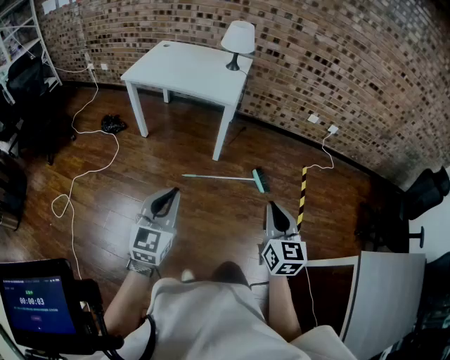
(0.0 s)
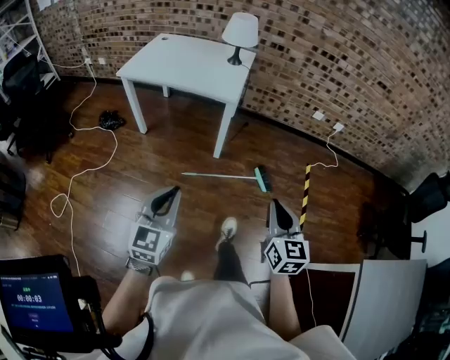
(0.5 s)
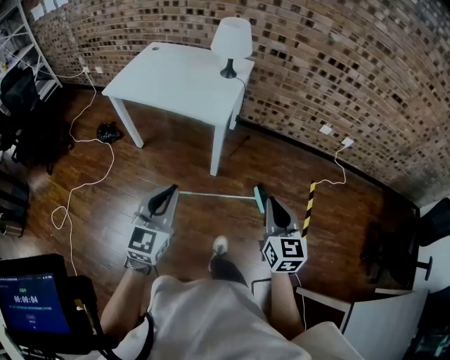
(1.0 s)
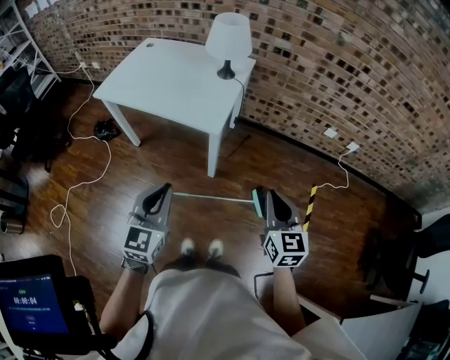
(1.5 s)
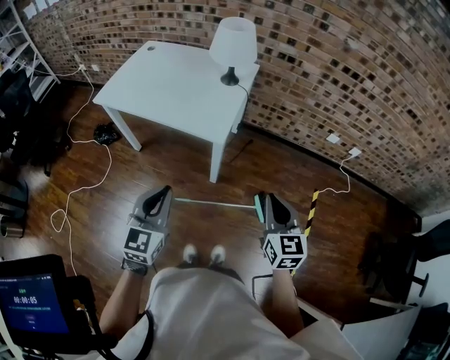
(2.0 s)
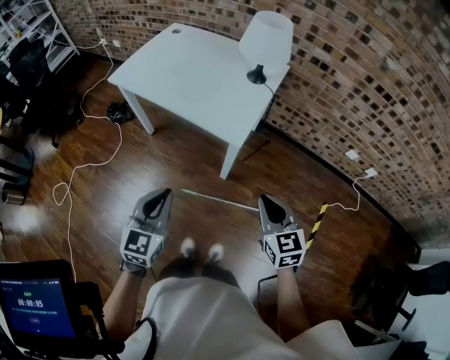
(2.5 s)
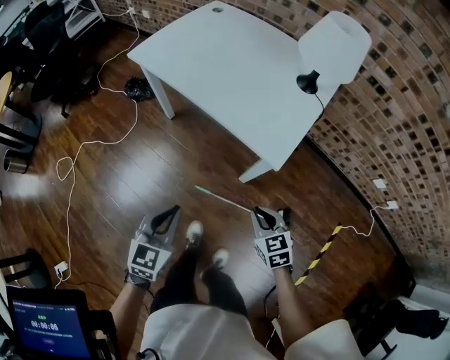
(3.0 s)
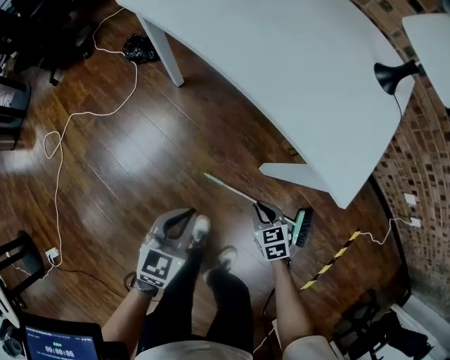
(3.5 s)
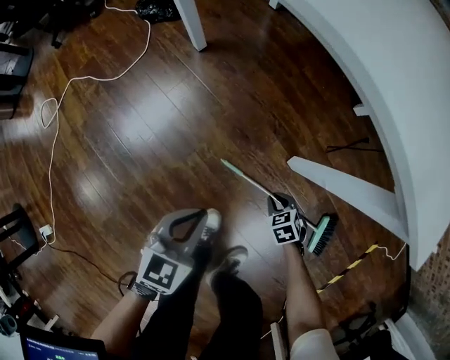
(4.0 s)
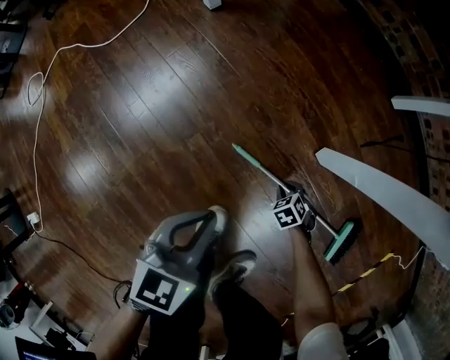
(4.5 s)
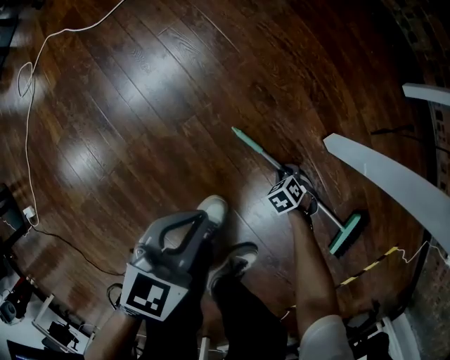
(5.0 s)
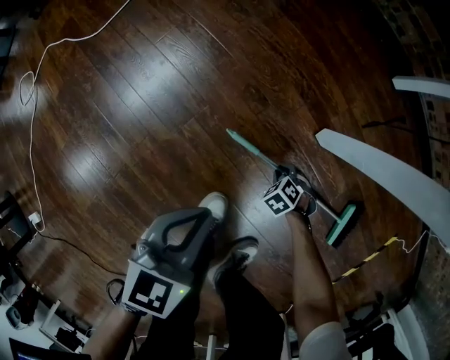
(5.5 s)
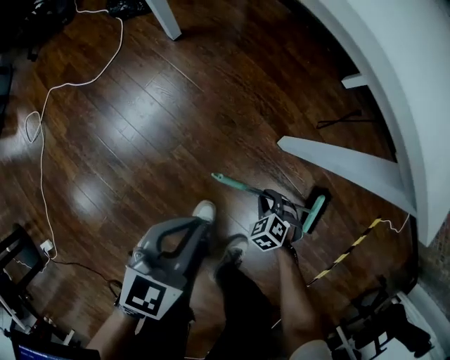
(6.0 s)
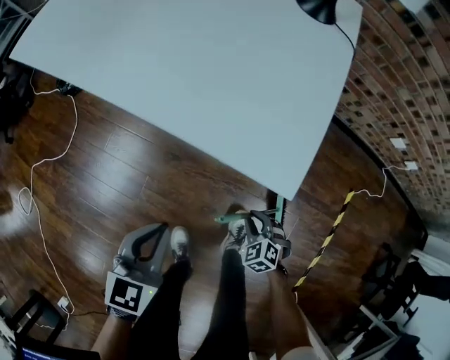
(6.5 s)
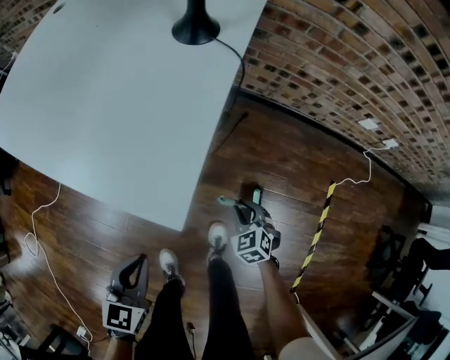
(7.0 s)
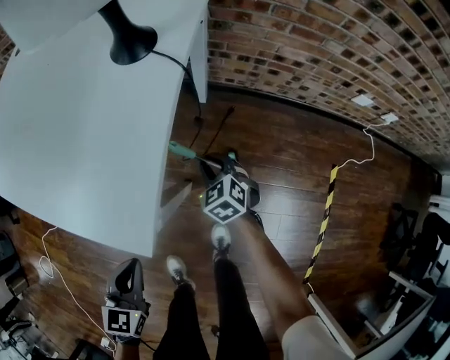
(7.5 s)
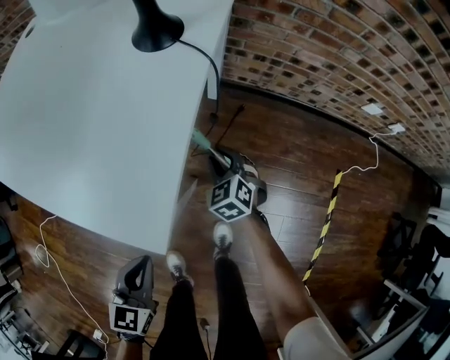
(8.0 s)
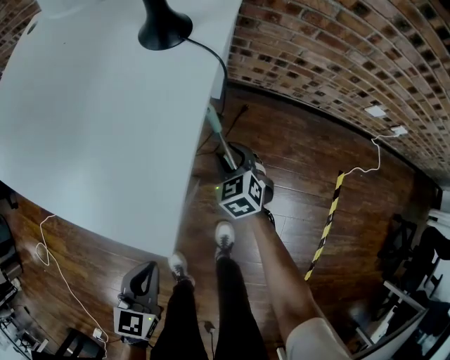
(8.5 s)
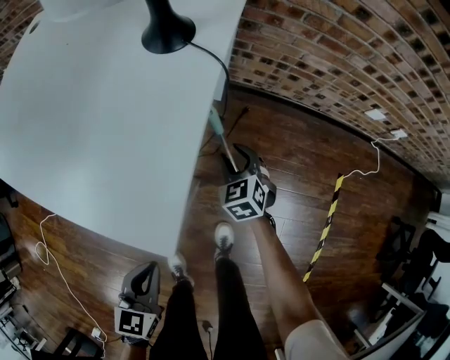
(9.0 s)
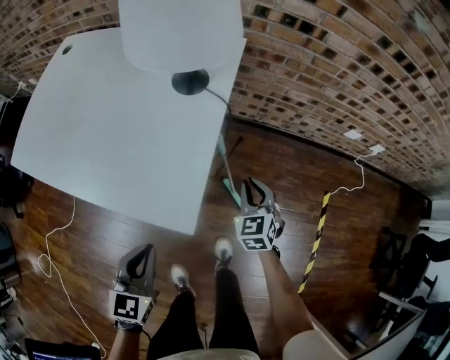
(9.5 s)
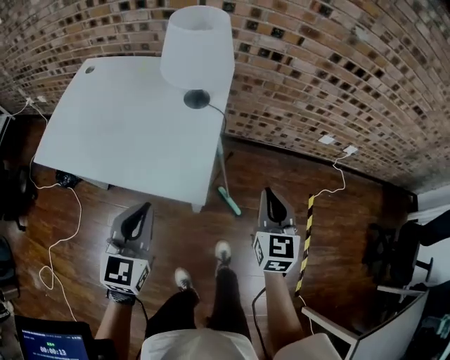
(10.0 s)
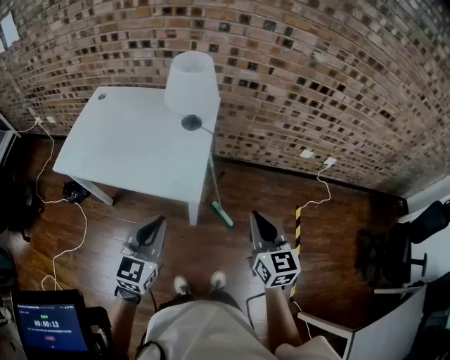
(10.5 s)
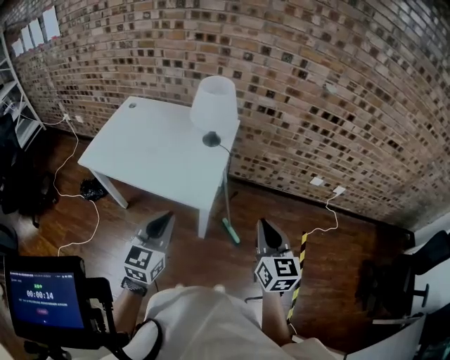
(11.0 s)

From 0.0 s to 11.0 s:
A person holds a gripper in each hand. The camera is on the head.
From 0.0 s to 2.0 s: The grippers both shift forward by some 40 cm.
From 2.0 s to 3.5 s: Both grippers travel together downward, roughly 40 cm. The left gripper turns by approximately 30 degrees. Meanwhile the right gripper tips its fingers downward by approximately 40 degrees.
From 3.5 s to 5.5 s: The left gripper goes some 25 cm downward, while the right gripper is displaced downward by about 40 cm, and tips its fingers downward by about 30 degrees.
From 5.5 s to 7.5 s: The left gripper shifts roughly 30 cm upward, while the right gripper heads upward, covering about 50 cm, and tips its fingers upward by approximately 40 degrees.
From 7.5 s to 9.0 s: The grippers stay close to where they were, moving slightly.
From 9.0 s to 11.0 s: The left gripper goes some 40 cm upward, and swivels some 30 degrees. The right gripper heads upward and backward, covering roughly 60 cm, points its fingers some 30 degrees further upward, and closes up.

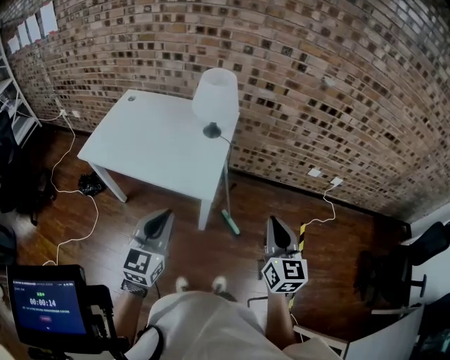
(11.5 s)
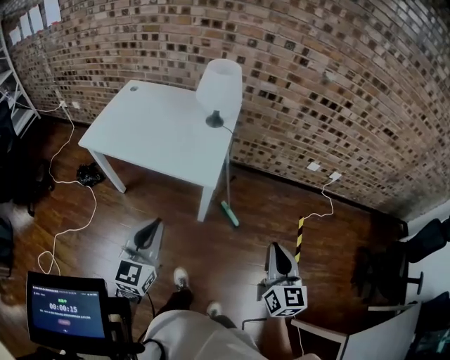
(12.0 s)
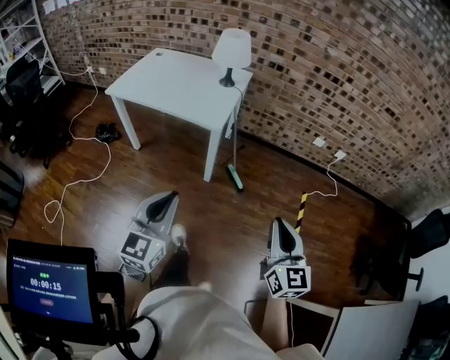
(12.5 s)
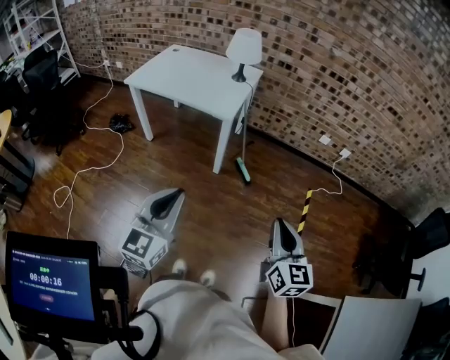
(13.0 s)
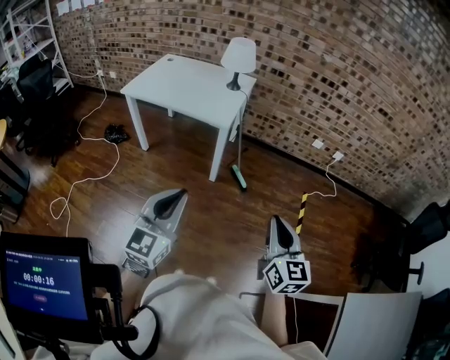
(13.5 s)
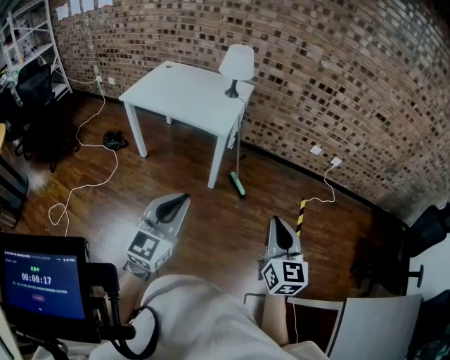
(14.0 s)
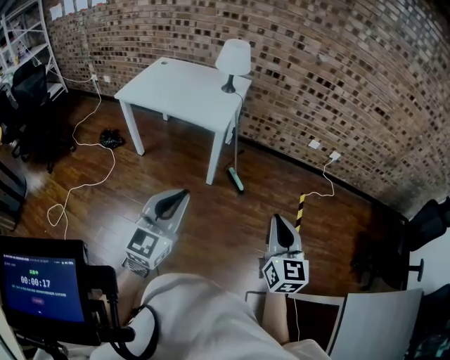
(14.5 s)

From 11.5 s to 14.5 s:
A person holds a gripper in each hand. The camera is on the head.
From 11.5 s to 13.0 s: Both grippers are carried backward, roughly 40 cm.
From 13.0 s to 14.5 s: The grippers make only small movements.

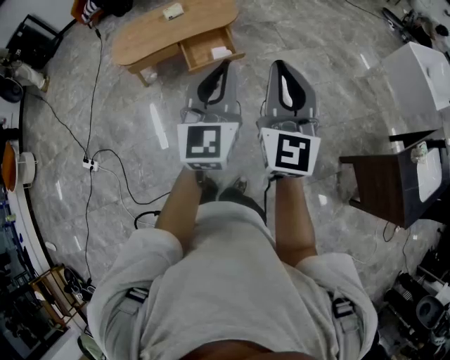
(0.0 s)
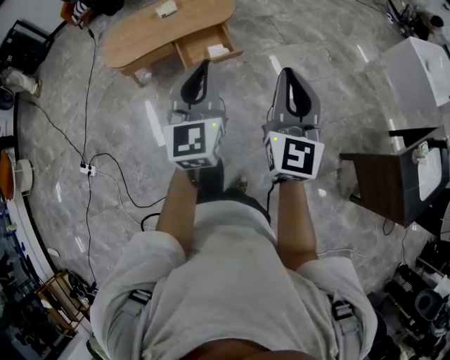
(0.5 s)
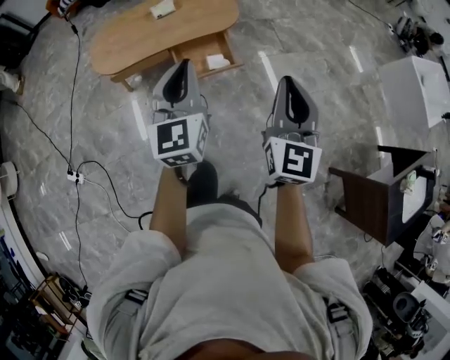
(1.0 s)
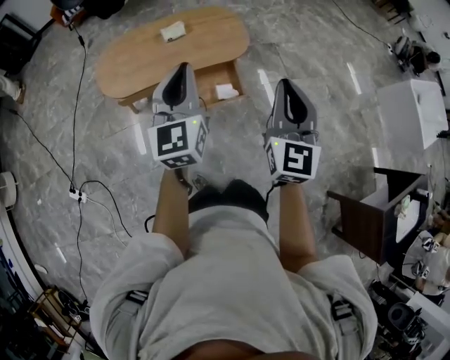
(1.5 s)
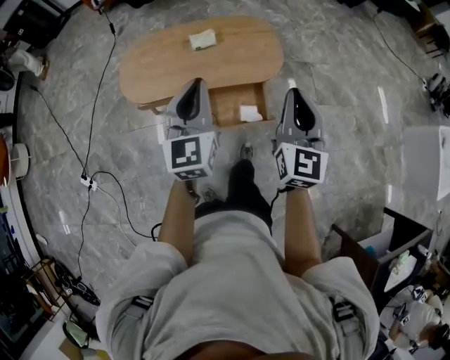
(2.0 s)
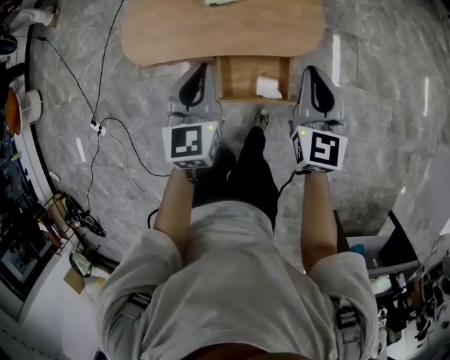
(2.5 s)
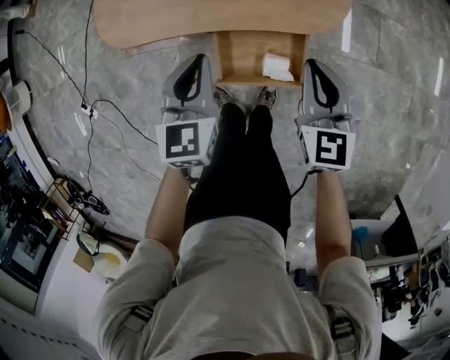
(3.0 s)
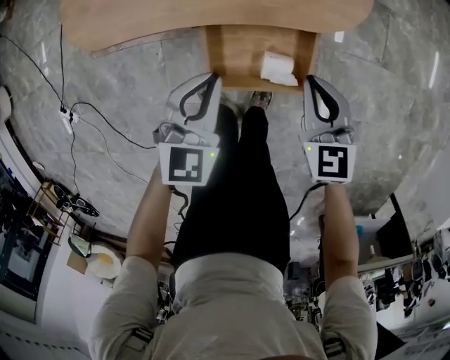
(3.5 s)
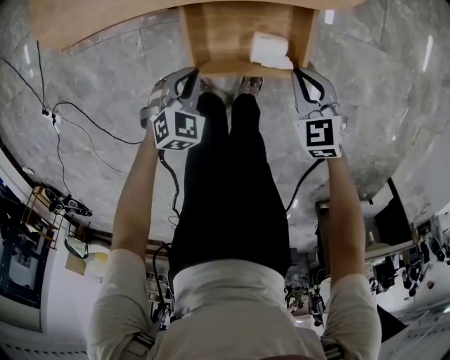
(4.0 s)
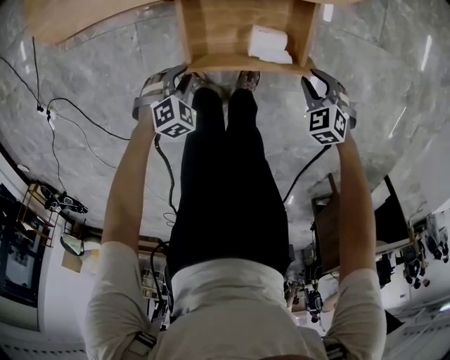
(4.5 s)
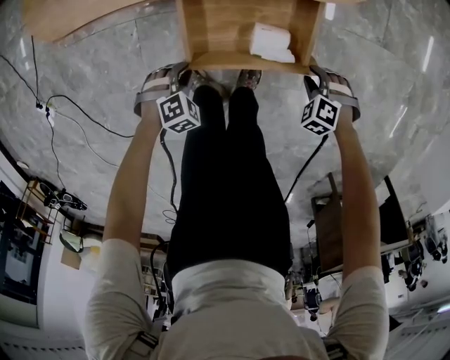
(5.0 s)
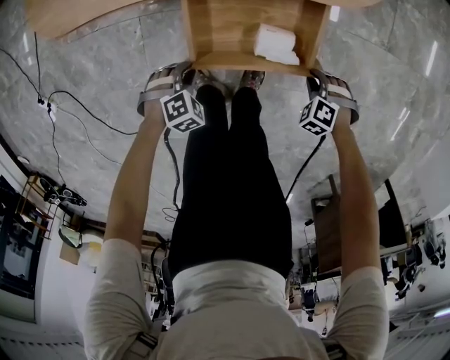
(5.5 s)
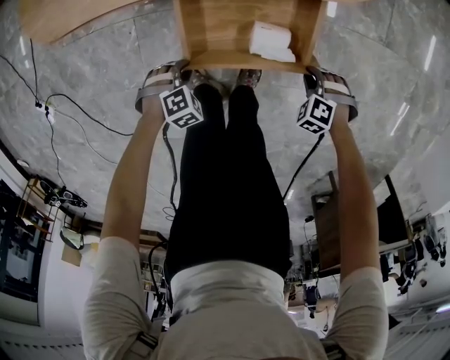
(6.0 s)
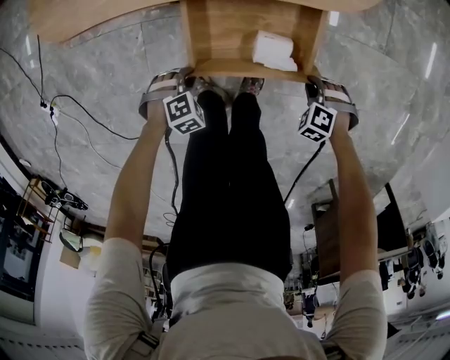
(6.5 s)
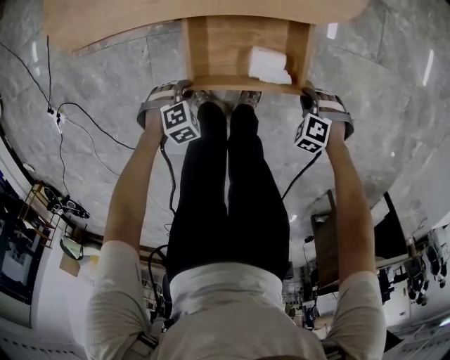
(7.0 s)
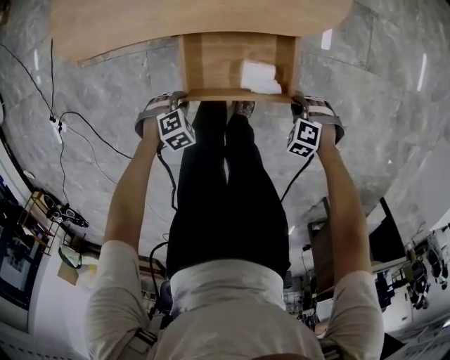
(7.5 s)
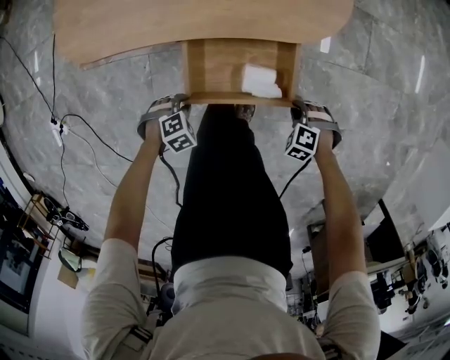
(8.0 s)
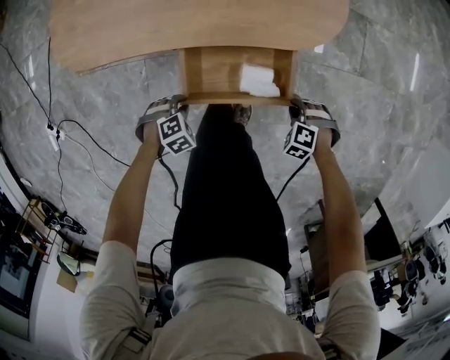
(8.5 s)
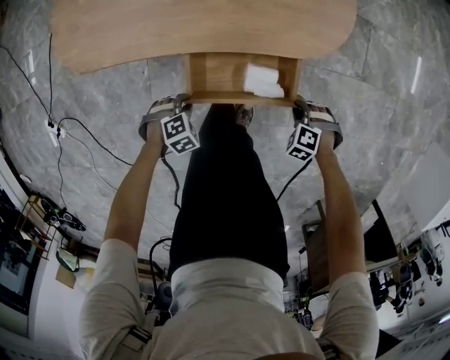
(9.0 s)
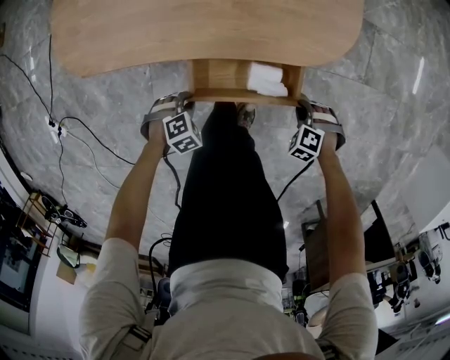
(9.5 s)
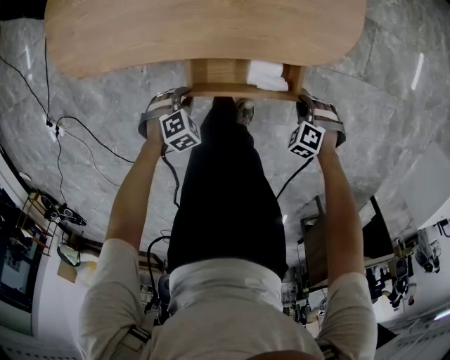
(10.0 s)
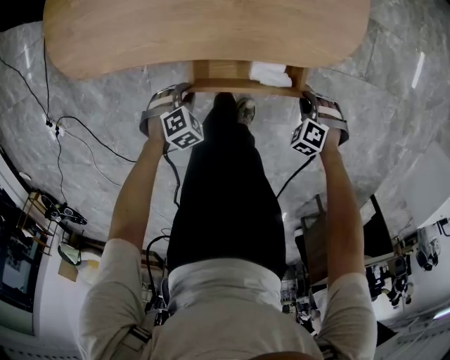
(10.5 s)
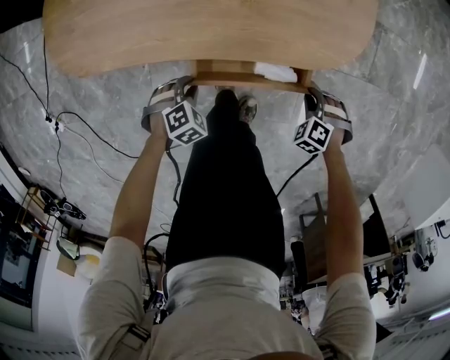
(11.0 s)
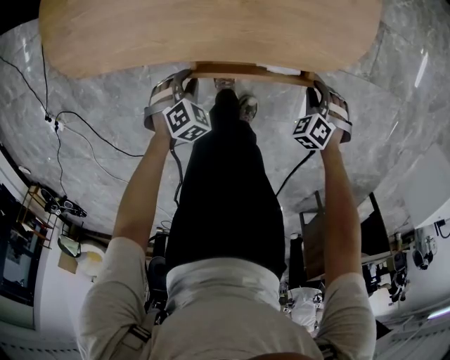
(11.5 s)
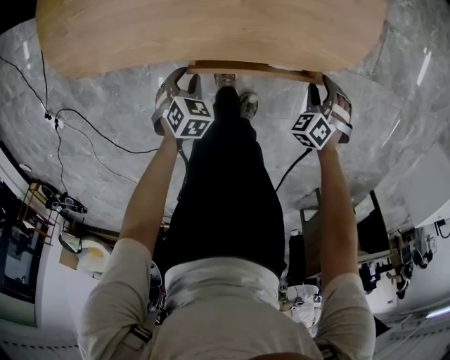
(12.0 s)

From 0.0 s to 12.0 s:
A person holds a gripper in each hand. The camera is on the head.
From 0.0 s to 2.0 s: The pair of grippers is taken forward, approximately 50 cm. The left gripper swivels about 20 degrees.
From 2.0 s to 4.0 s: The grippers both shift downward by about 60 cm. The left gripper tilts its fingers roughly 50 degrees downward. Meanwhile the right gripper tips its fingers downward by about 50 degrees.
From 4.0 s to 6.0 s: The grippers both shift downward by roughly 15 cm. The left gripper swivels some 30 degrees, and opens its fingers. The right gripper tips its fingers downward by about 30 degrees.
From 6.0 s to 8.0 s: The two grippers go roughly 5 cm upward.
From 8.0 s to 10.0 s: The left gripper shifts by roughly 10 cm. Meanwhile the right gripper ends up roughly 10 cm from where it was.
From 10.0 s to 12.0 s: The left gripper ends up roughly 10 cm from where it was, and rotates roughly 40 degrees; the right gripper moves roughly 10 cm, swivels about 30 degrees, and opens its fingers.
